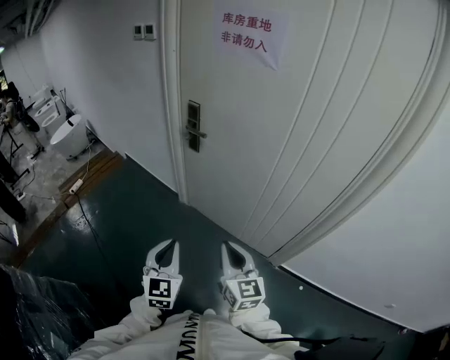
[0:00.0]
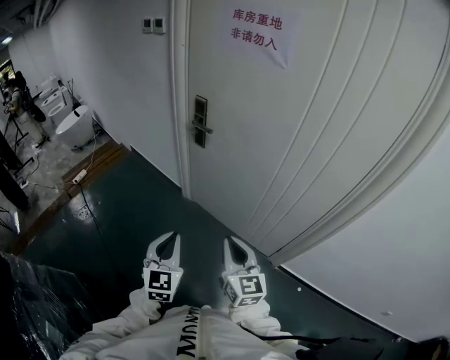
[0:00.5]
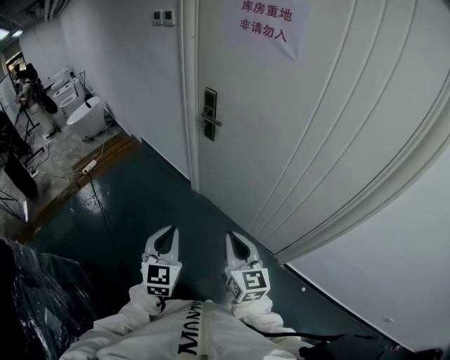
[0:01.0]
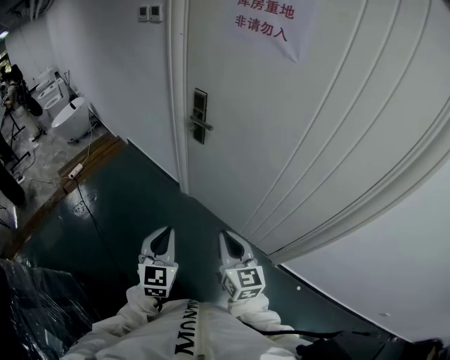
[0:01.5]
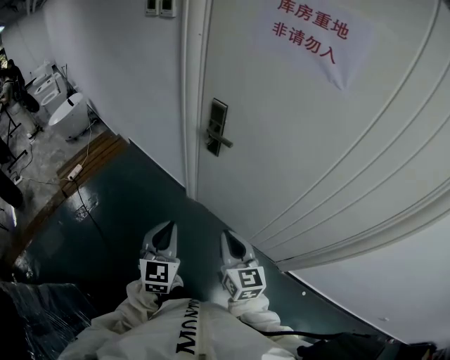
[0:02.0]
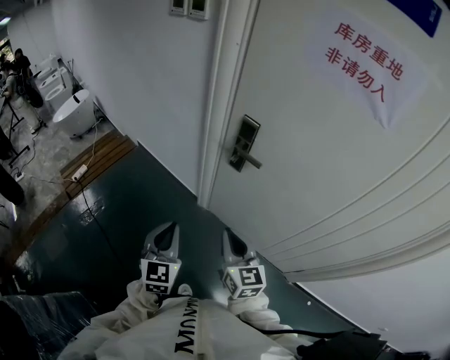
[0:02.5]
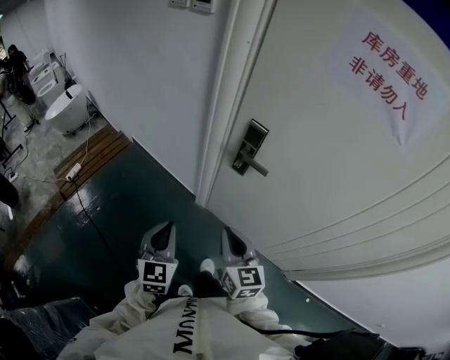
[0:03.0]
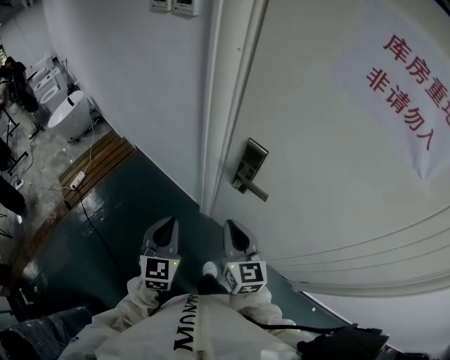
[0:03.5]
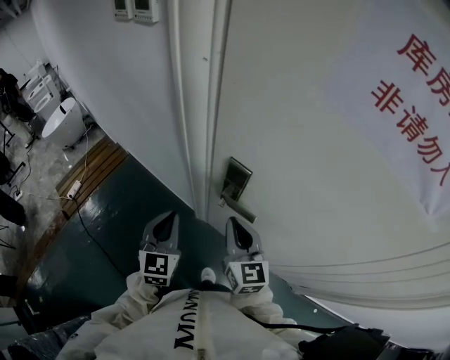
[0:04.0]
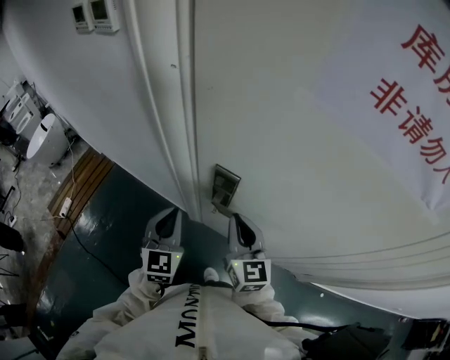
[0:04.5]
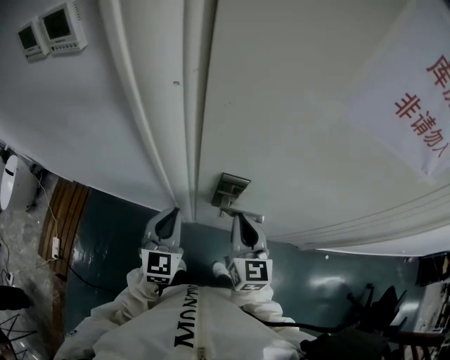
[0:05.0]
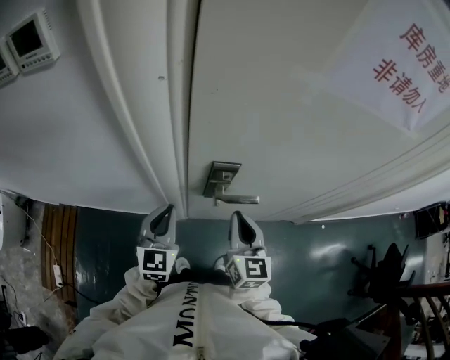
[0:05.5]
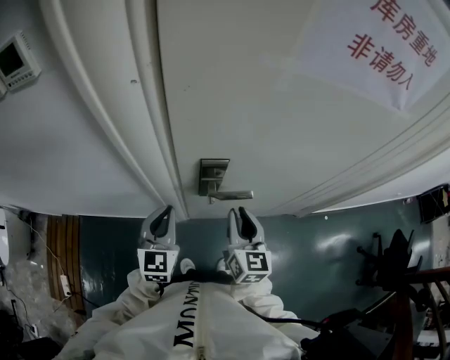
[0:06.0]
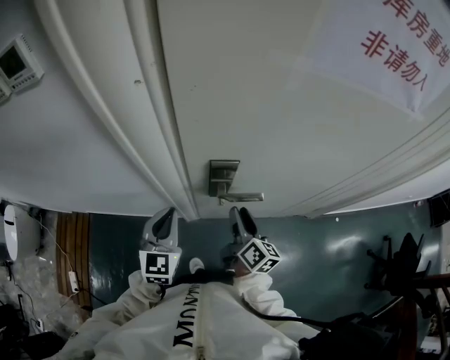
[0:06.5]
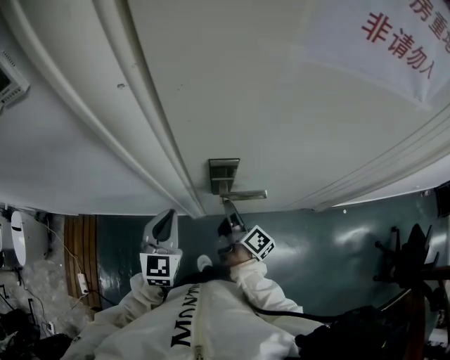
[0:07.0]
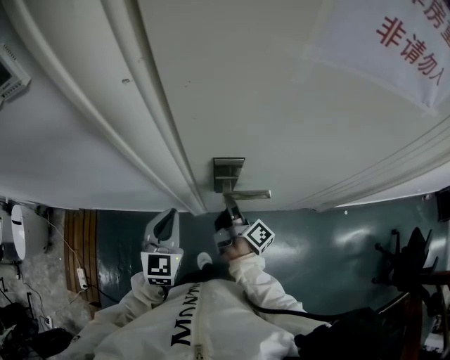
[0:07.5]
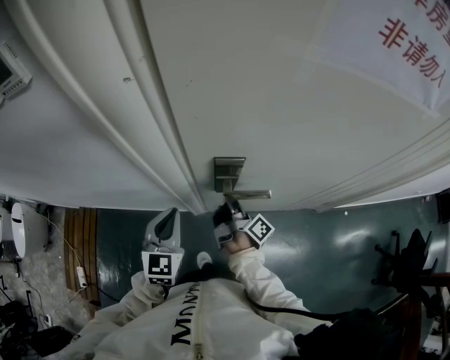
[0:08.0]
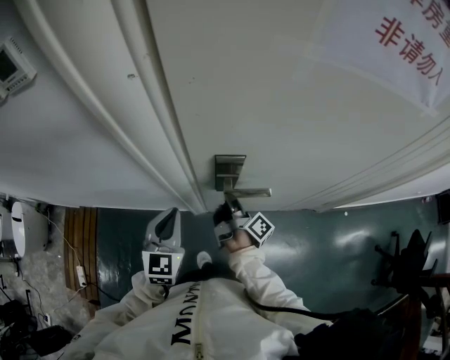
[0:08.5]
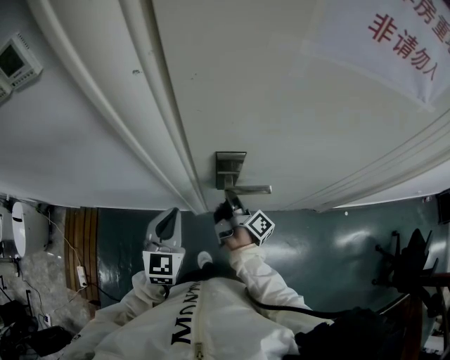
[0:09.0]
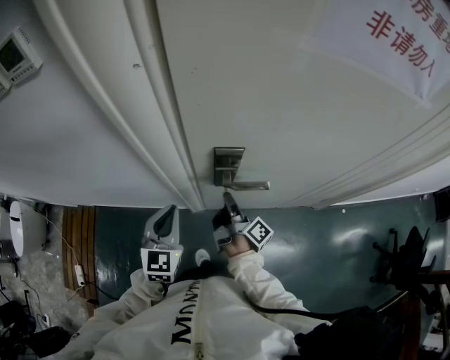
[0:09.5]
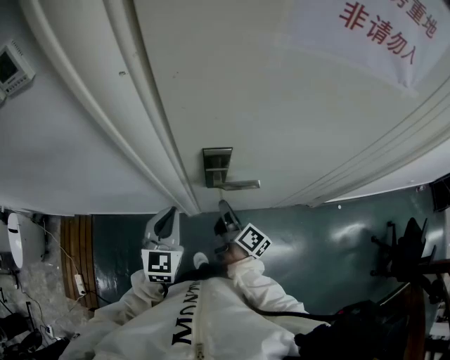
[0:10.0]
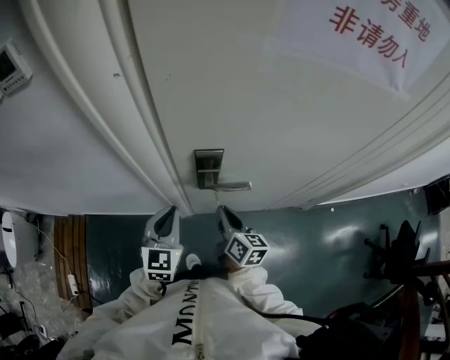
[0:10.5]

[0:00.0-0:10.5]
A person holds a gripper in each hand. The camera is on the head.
0:00.0 to 0:02.0: Both grippers travel together forward, approximately 20 cm.
0:02.0 to 0:04.0: Both grippers move forward, some 35 cm.
0:04.0 to 0:06.5: The left gripper changes place by some 10 cm, and rotates some 40 degrees, while the right gripper moves downward, about 10 cm, rotates roughly 60 degrees, and opens.
0:06.5 to 0:08.5: The right gripper shifts roughly 10 cm forward and downward, twists roughly 40 degrees clockwise, seen from behind, and closes.
0:08.5 to 0:10.5: The right gripper shifts about 5 cm backward, and twists about 50 degrees counterclockwise, seen from behind.

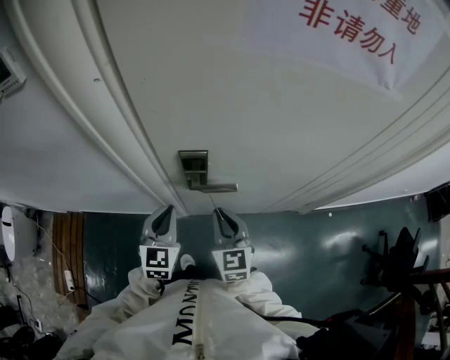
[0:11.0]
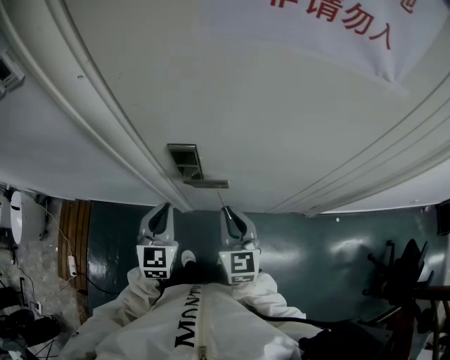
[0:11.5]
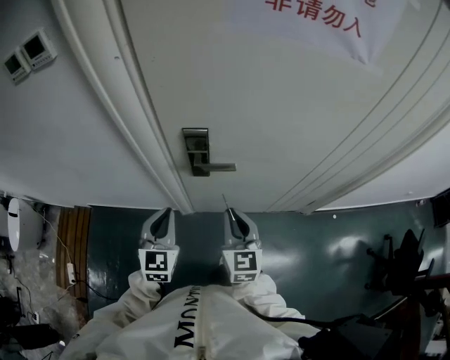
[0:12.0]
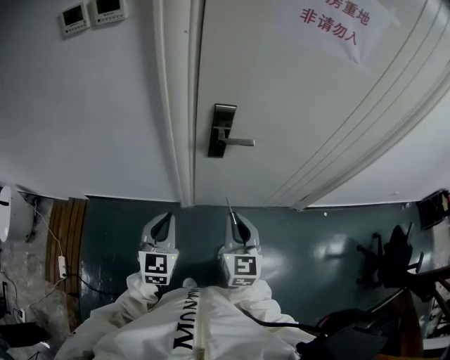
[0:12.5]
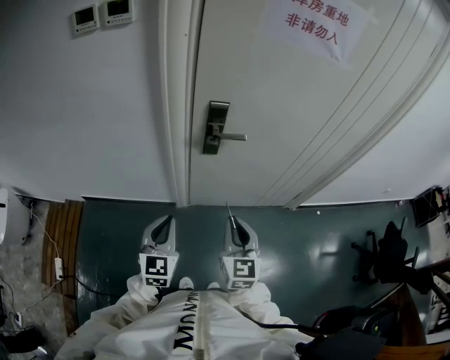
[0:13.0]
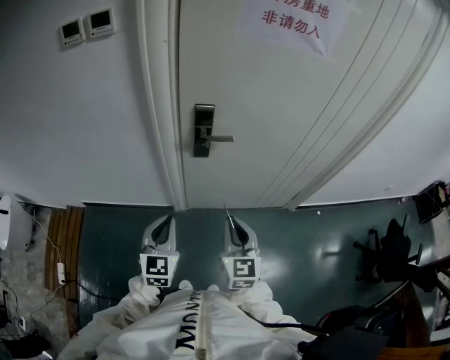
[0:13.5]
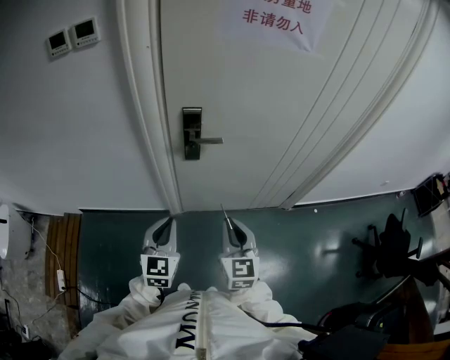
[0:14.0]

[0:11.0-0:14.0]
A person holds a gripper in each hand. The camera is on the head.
0:11.0 to 0:12.5: The right gripper moves backward, approximately 20 cm. Meanwhile the left gripper heads backward and to the left, covering about 20 cm.
0:12.5 to 0:14.0: The right gripper is displaced to the right and backward by roughly 10 cm. Meanwhile the left gripper heads to the right, covering about 10 cm.

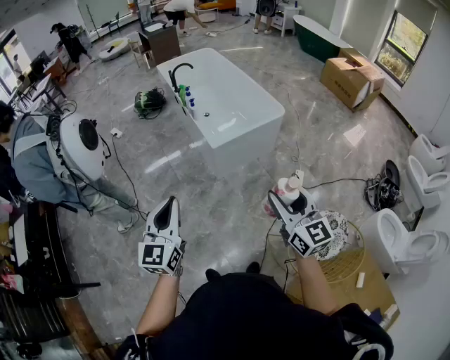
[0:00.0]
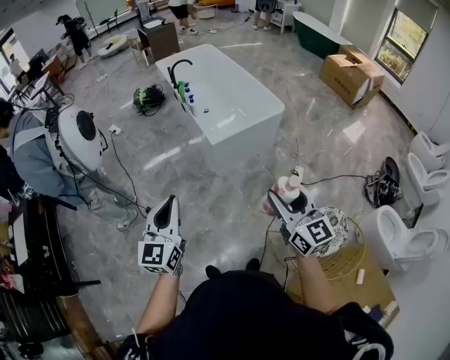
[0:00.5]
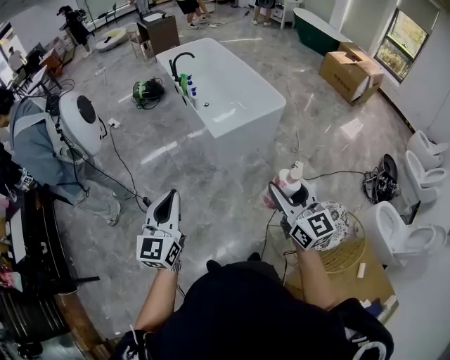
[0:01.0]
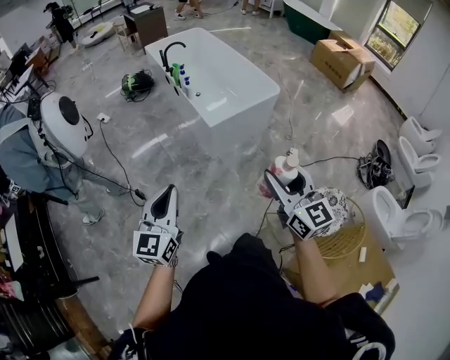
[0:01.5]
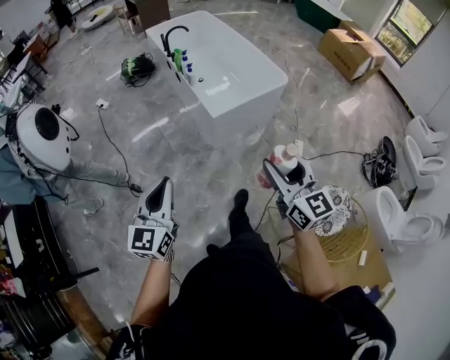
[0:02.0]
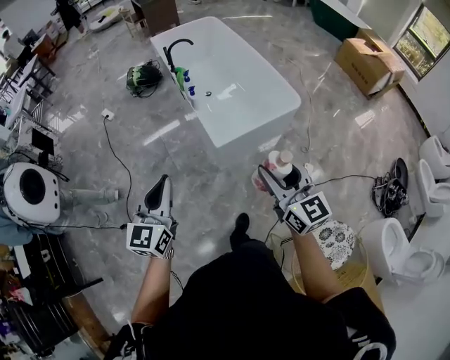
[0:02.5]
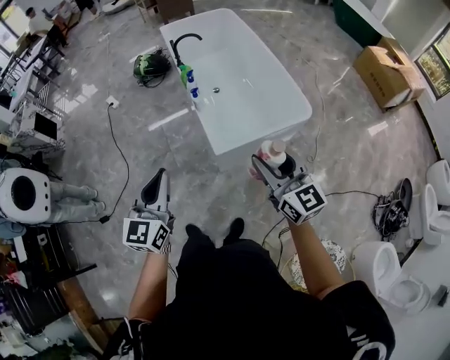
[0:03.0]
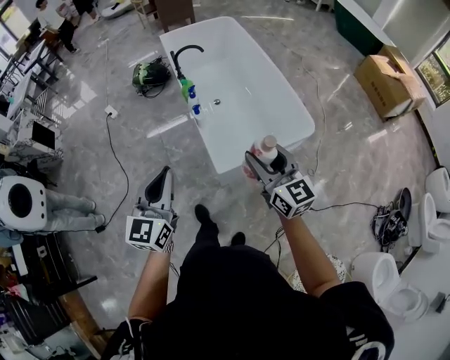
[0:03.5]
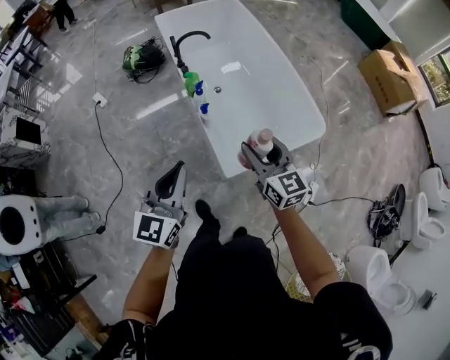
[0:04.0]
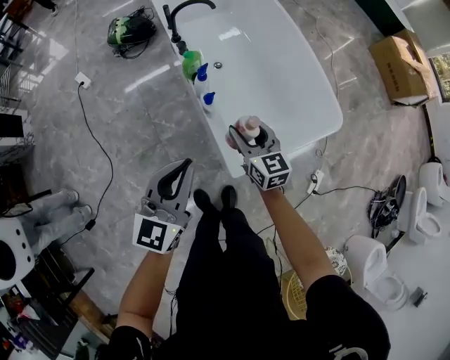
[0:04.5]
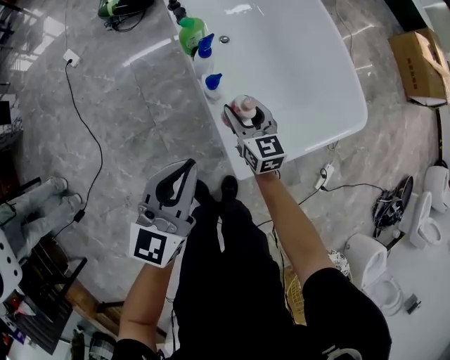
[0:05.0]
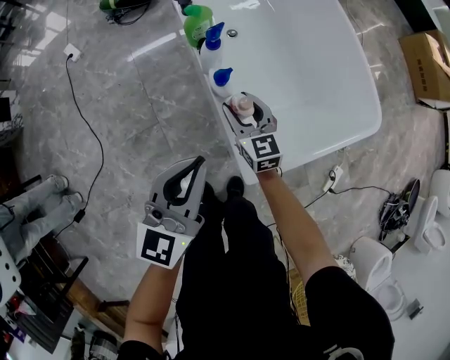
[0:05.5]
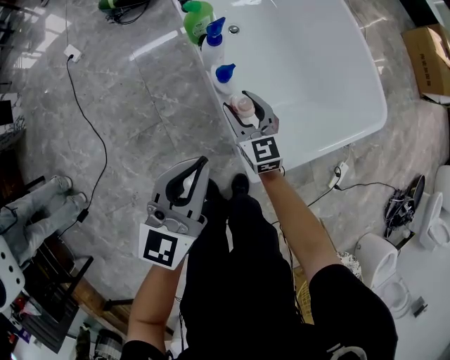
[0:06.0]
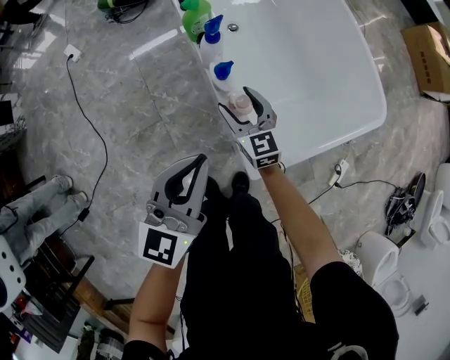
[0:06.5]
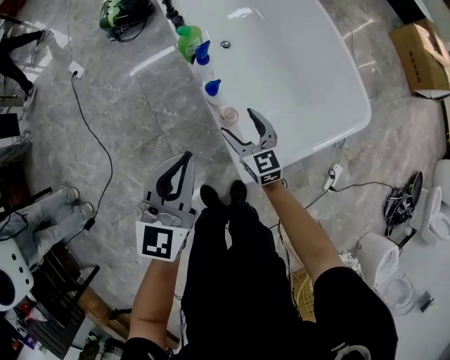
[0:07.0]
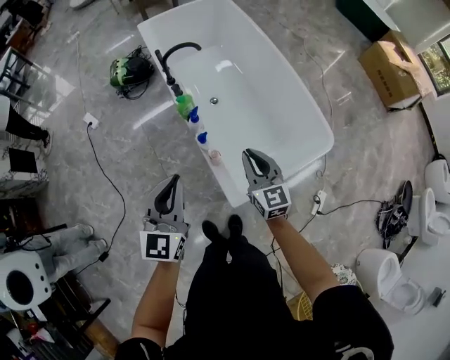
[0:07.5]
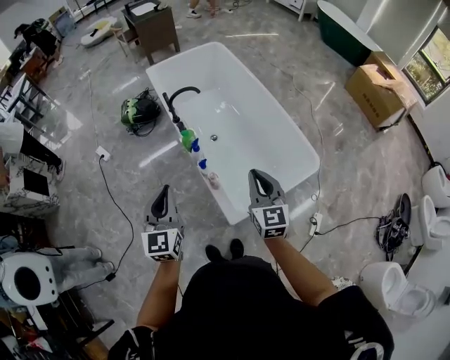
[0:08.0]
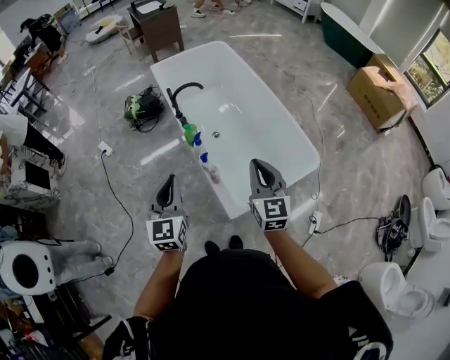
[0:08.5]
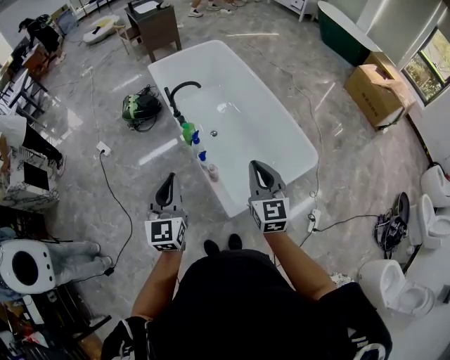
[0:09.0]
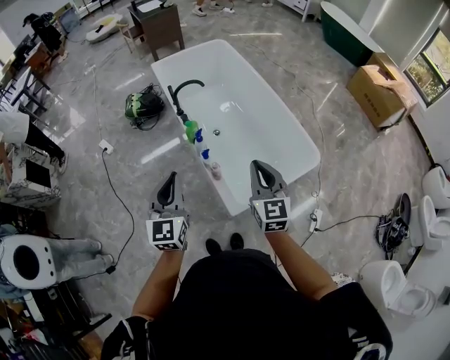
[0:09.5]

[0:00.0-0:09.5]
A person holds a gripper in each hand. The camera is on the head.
0:00.0 to 0:02.0: The left gripper shifts about 10 cm to the left, forward and downward; the right gripper travels to the left and forward by approximately 15 cm.
0:02.0 to 0:04.0: The pair of grippers is taken forward, some 60 cm.
0:04.0 to 0:05.5: Both grippers move downward and forward, approximately 40 cm.
0:05.5 to 0:07.5: The two grippers go approximately 25 cm upward. The right gripper closes its fingers.
0:07.5 to 0:09.5: The right gripper shifts approximately 20 cm upward and backward. The left gripper moves upward and backward, about 10 cm.

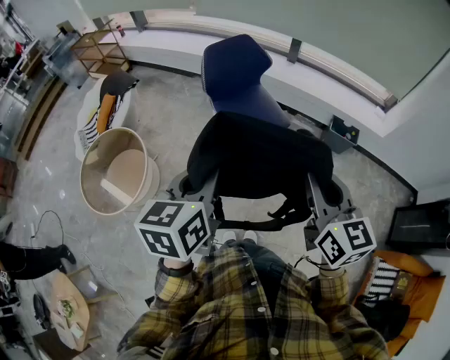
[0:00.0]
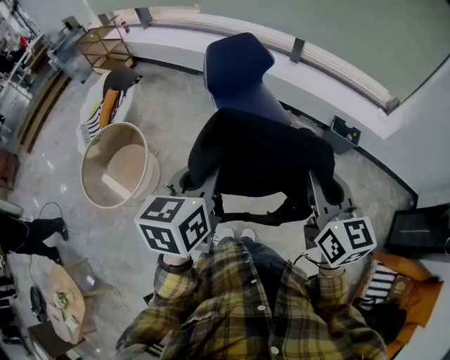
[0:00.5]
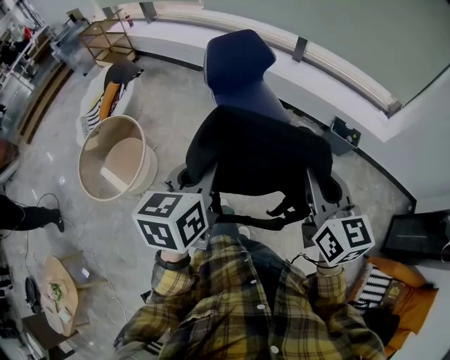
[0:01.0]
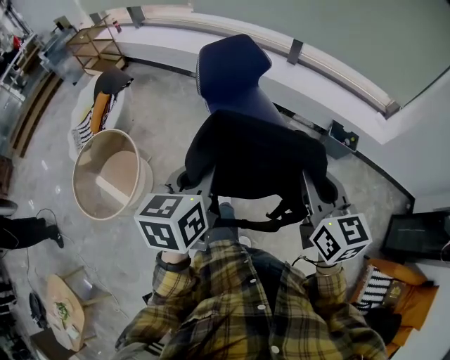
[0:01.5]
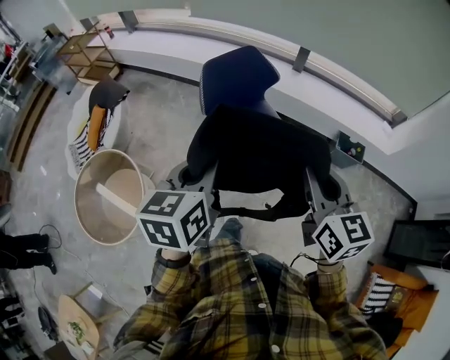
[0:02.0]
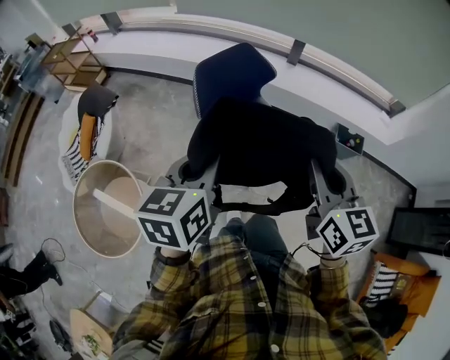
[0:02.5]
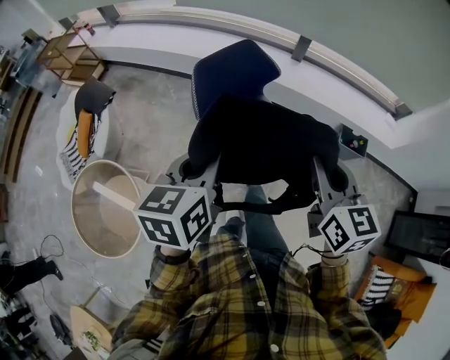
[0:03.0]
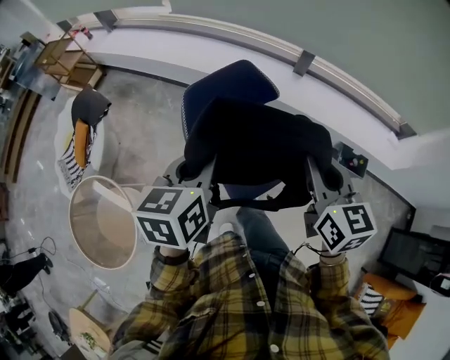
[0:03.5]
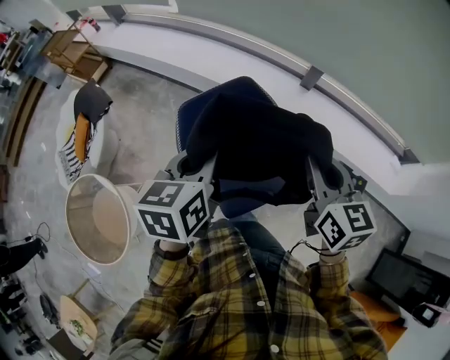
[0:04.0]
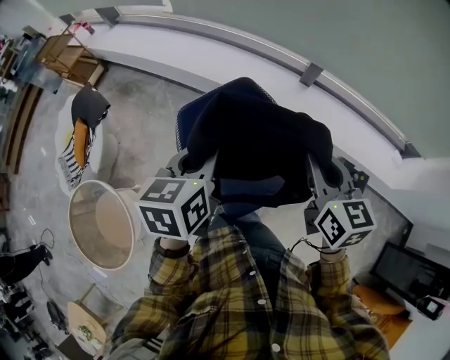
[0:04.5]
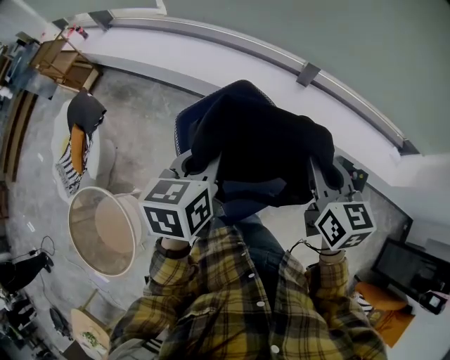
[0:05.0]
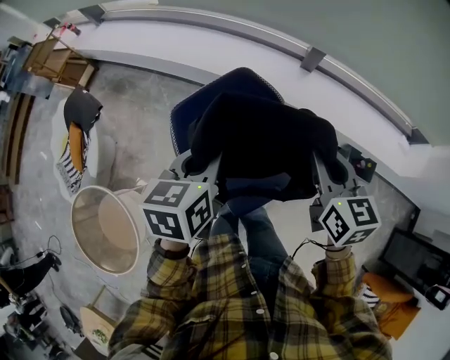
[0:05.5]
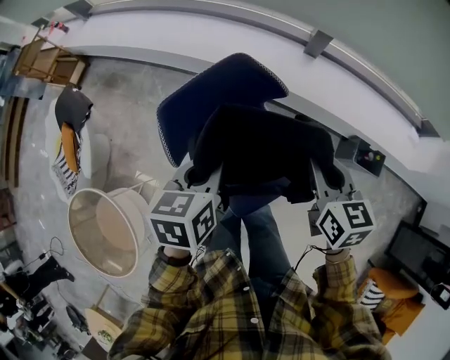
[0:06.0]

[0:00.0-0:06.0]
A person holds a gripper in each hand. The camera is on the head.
0:00.0 to 0:02.0: Both grippers move forward, some 20 cm.
0:02.0 to 0:04.0: Both grippers travel together forward, roughly 35 cm.
0:04.0 to 0:06.0: The grippers both shift downward by roughly 15 cm.
